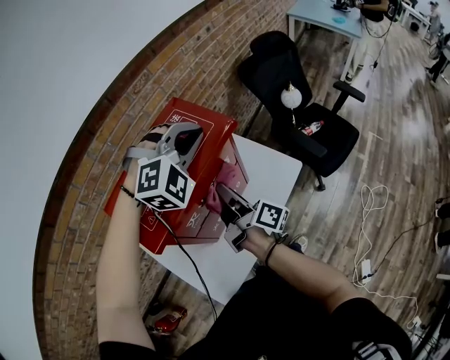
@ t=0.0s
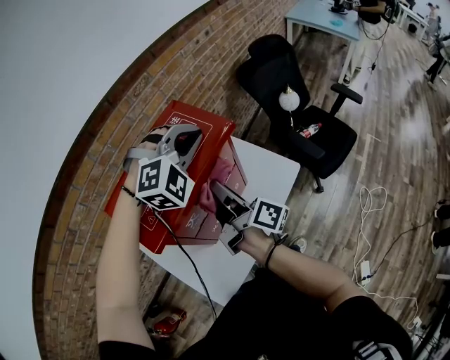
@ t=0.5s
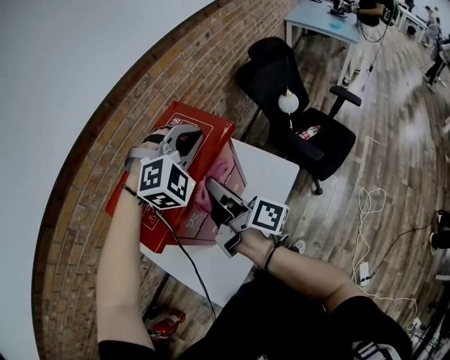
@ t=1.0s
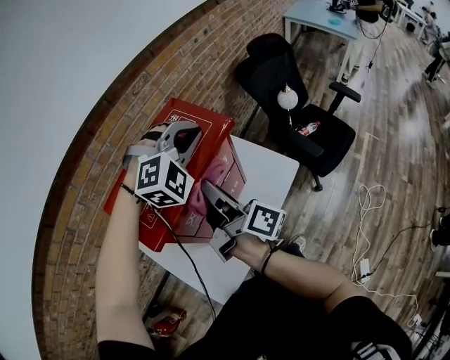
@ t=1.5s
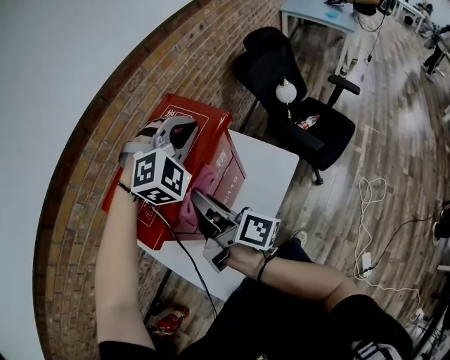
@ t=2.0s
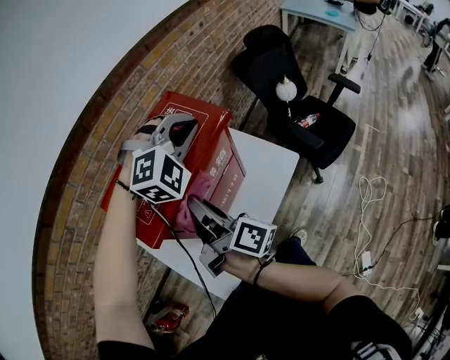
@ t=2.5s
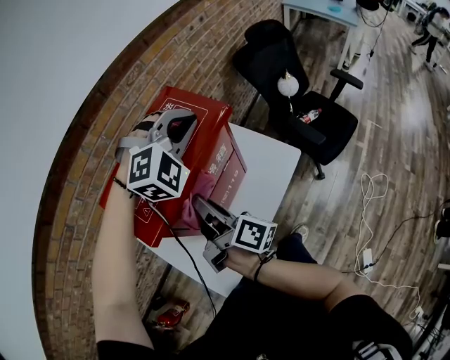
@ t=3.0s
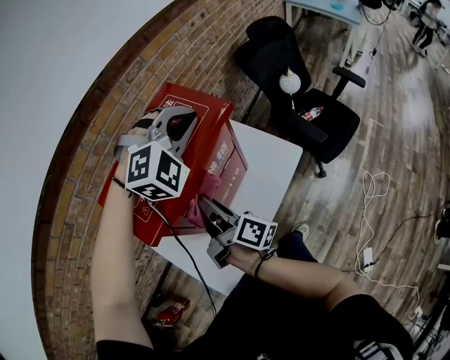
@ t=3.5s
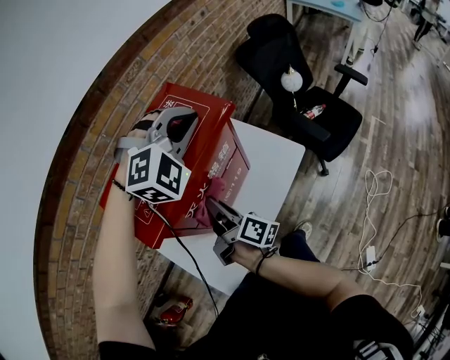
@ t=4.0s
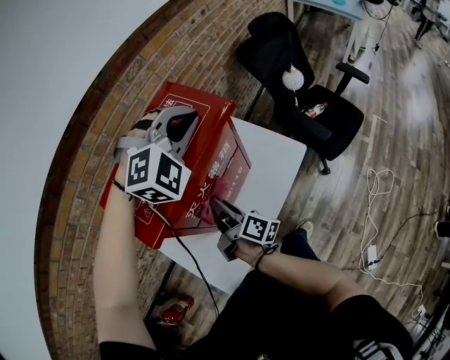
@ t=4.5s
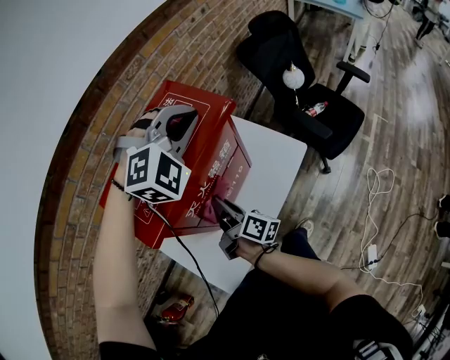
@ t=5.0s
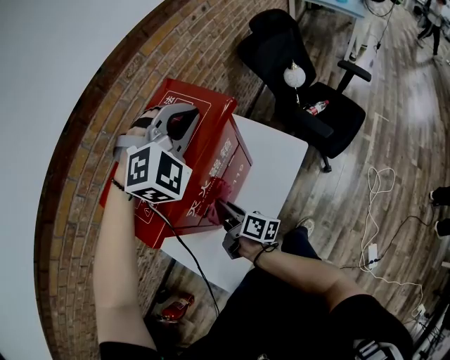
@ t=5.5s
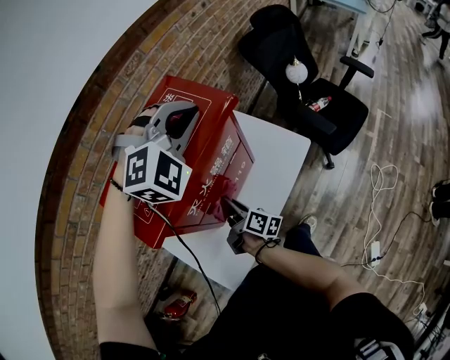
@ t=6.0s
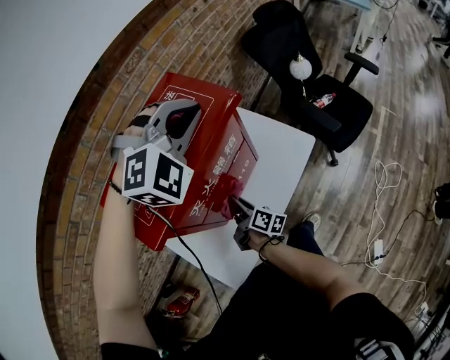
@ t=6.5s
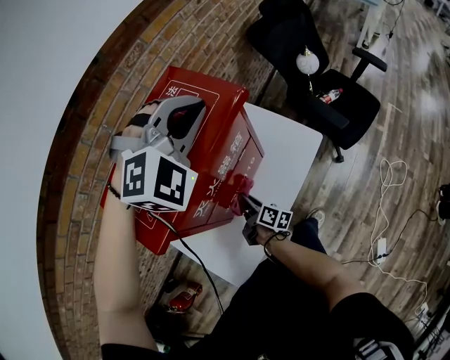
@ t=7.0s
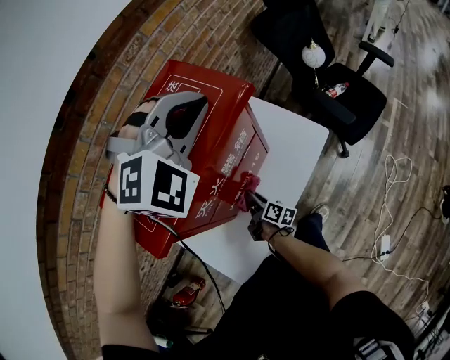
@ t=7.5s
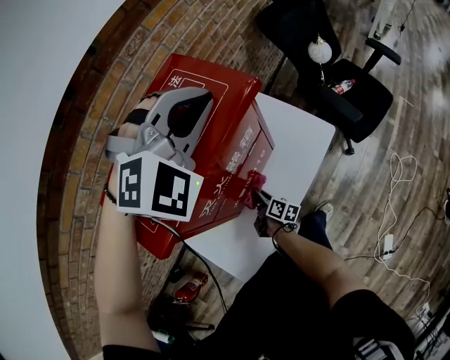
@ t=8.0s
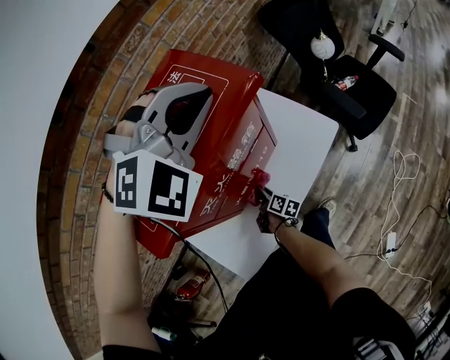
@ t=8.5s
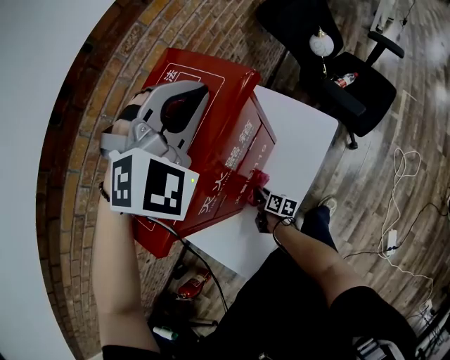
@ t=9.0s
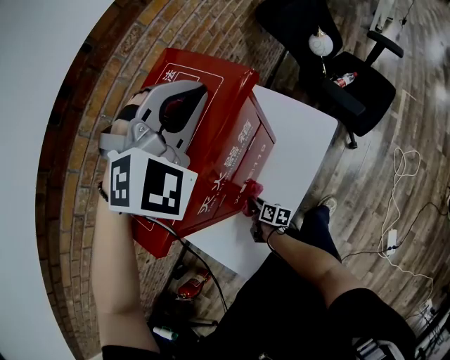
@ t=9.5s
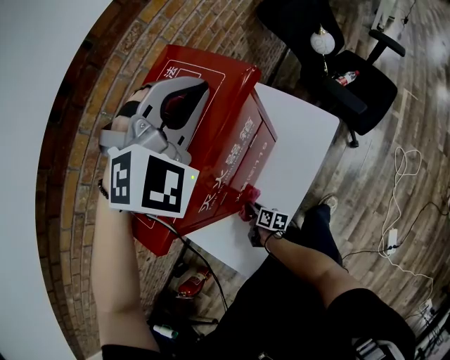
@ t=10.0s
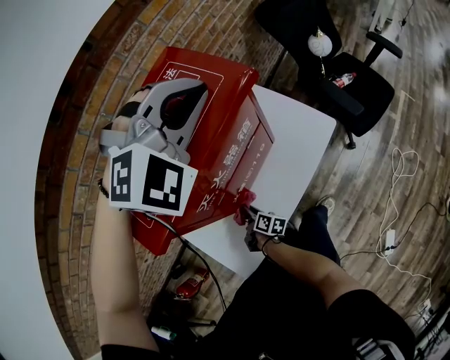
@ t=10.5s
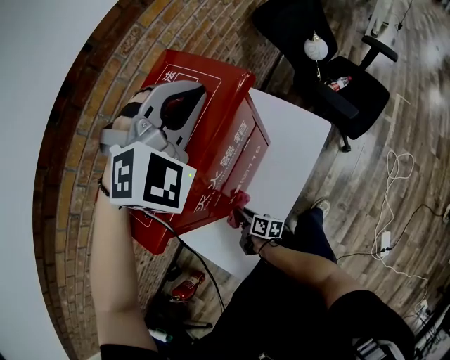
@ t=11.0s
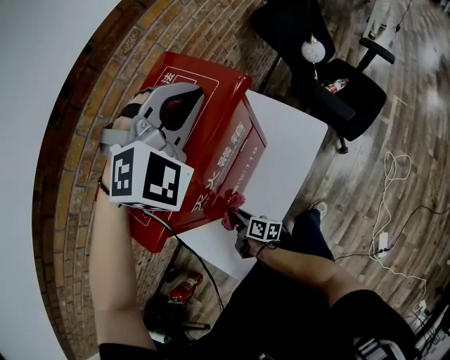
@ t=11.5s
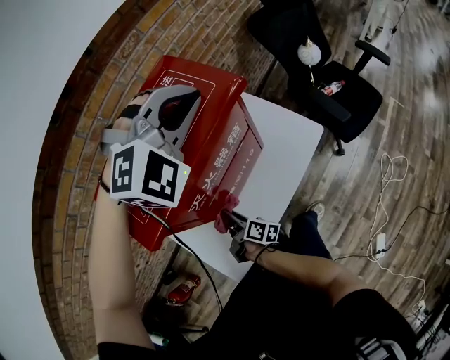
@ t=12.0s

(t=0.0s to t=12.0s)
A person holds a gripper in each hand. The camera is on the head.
t=0.0s - t=2.0s: The right gripper shifts roughly 10 cm upward.
t=2.0s - t=4.0s: The right gripper travels downward by some 15 cm.
t=4.0s - t=6.0s: The right gripper is displaced downward by roughly 10 cm.
t=6.0s - t=8.0s: The right gripper heads downward, covering about 20 cm.
t=8.0s - t=10.0s: The right gripper goes about 10 cm backward and to the left.
t=10.0s - t=12.0s: The right gripper shifts some 15 cm upward.

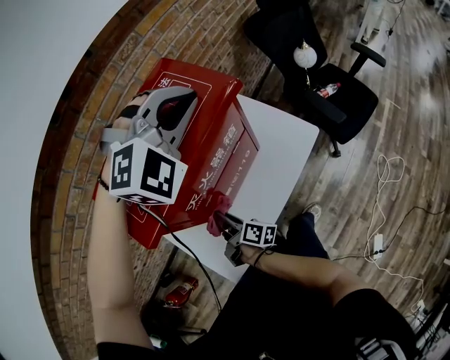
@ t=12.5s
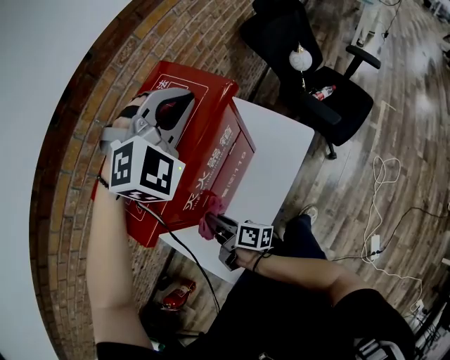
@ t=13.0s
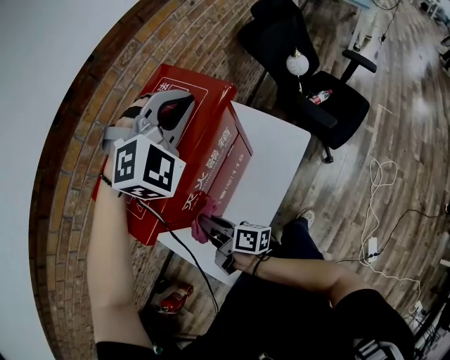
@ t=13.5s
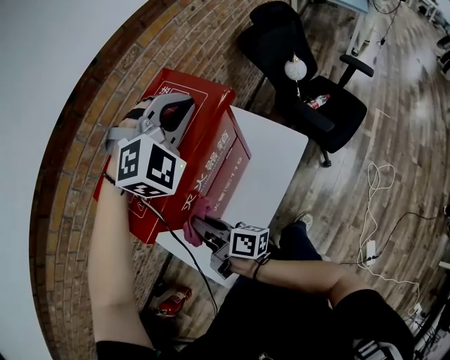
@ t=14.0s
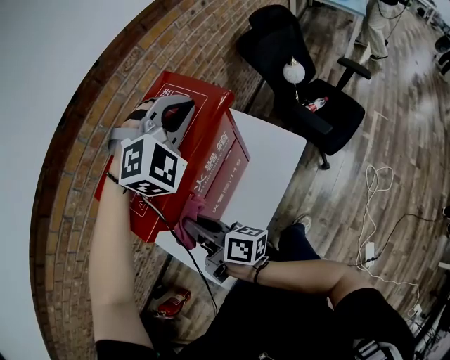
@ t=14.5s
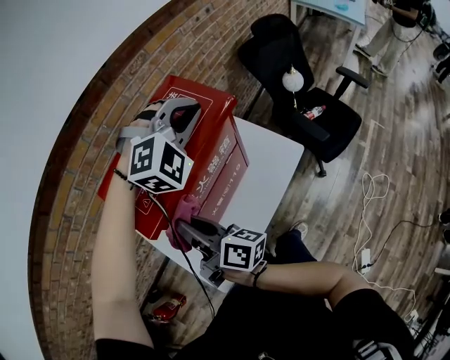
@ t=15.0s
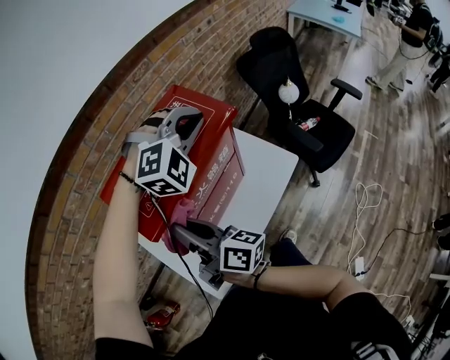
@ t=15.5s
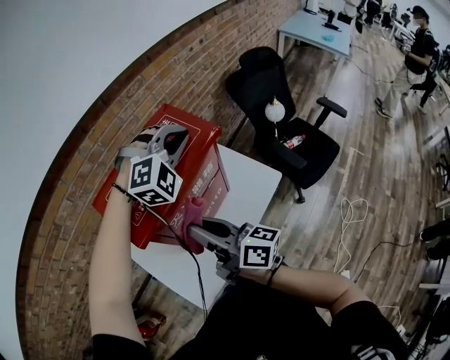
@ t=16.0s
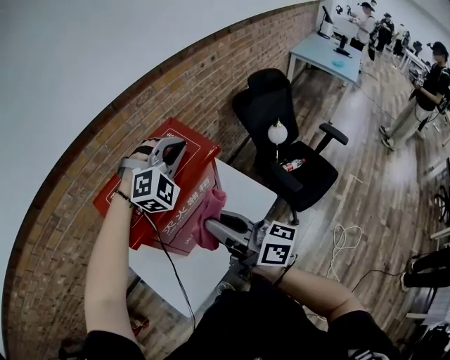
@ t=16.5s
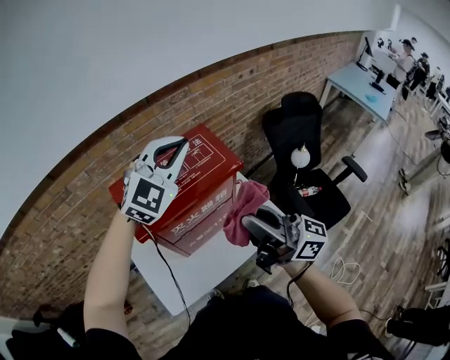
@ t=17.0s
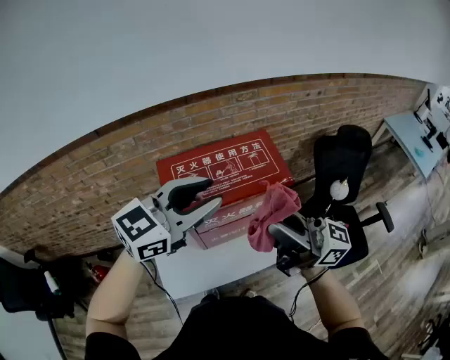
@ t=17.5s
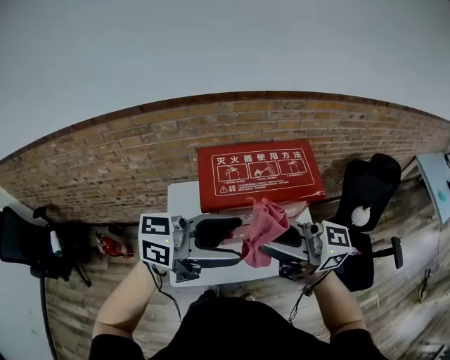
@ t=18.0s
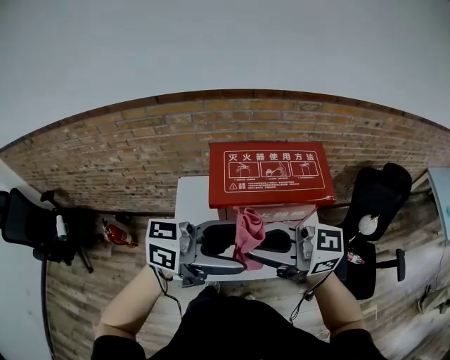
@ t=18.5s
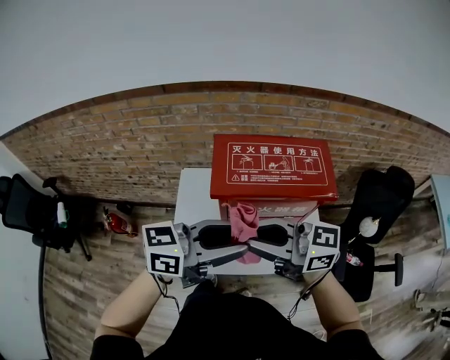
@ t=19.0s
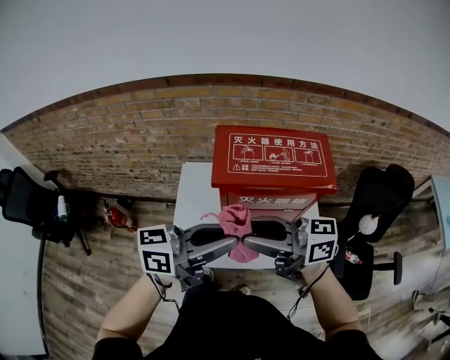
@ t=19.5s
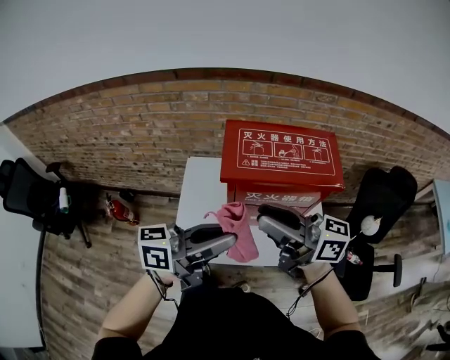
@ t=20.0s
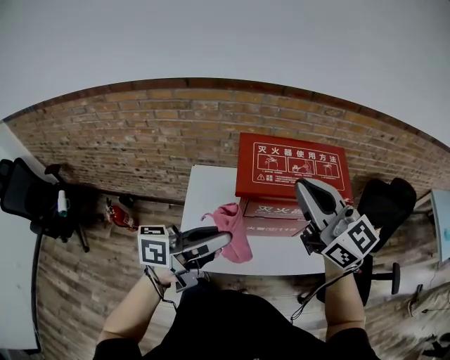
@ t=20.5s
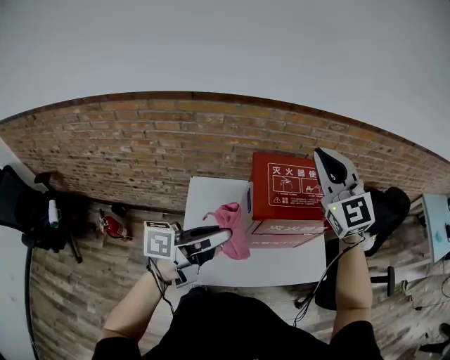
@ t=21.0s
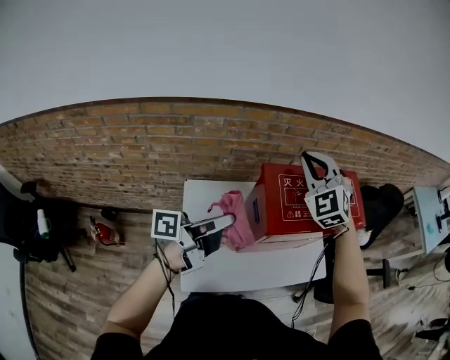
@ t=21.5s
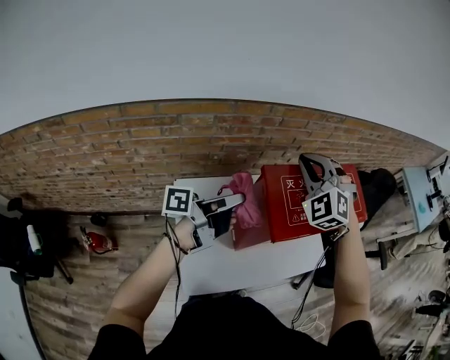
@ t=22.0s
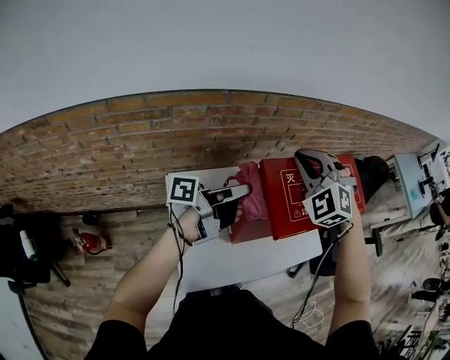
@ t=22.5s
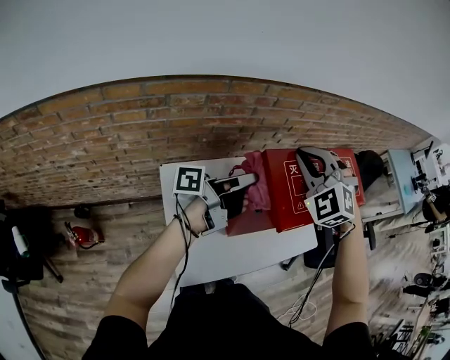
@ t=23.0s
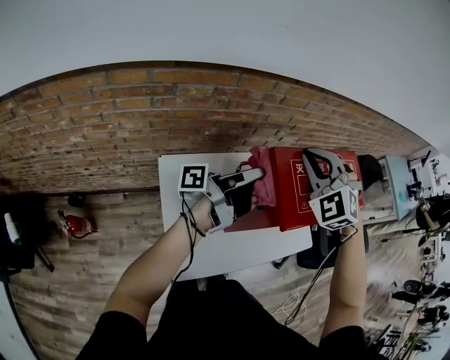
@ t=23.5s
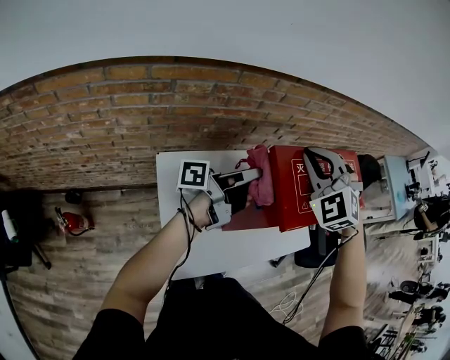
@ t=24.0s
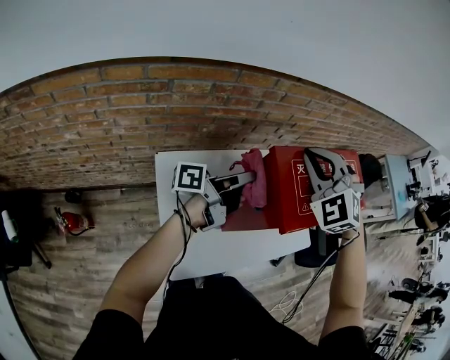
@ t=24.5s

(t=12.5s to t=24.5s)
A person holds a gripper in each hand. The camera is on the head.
t=12.5s - t=14.5s: The right gripper moves upward, approximately 20 cm, and turns by approximately 20 degrees.
t=14.5s - t=16.5s: The right gripper travels to the right and upward by some 20 cm, and rotates approximately 30 degrees.
t=16.5s - t=18.5s: The right gripper moves some 15 cm, and turns by some 70 degrees, while the left gripper ends up about 25 cm from where it was, rolls counterclockwise, seen from behind, by approximately 100 degrees, and opens.
t=18.5s - t=20.5s: The left gripper ends up about 10 cm from where it was, changes its angle by approximately 30 degrees, and closes. The right gripper moves about 10 cm, and changes its angle by approximately 40 degrees.
t=20.5s - t=22.5s: The right gripper shifts by approximately 25 cm, and tilts its fingers approximately 40 degrees downward. Meanwhile the left gripper ends up roughly 25 cm from where it was, and turns by roughly 40 degrees.
t=22.5s - t=24.5s: The grippers make only small movements.

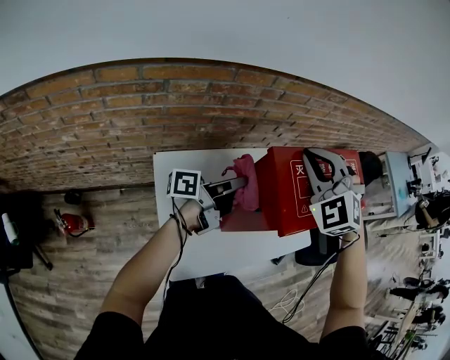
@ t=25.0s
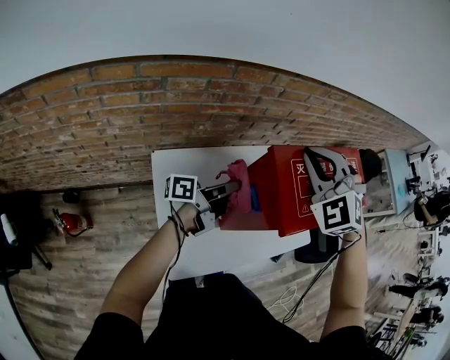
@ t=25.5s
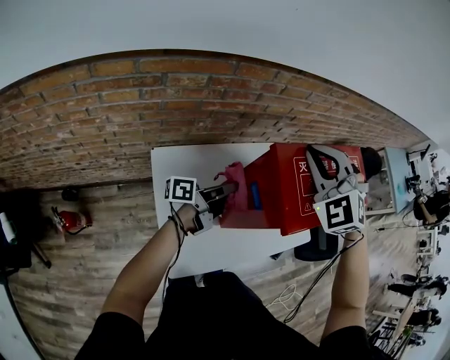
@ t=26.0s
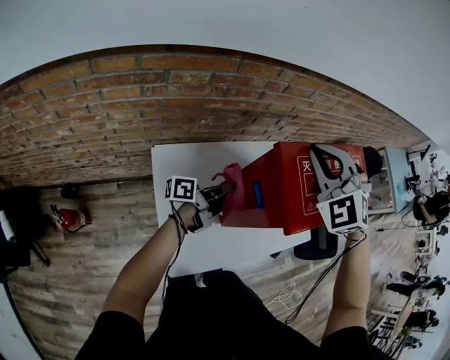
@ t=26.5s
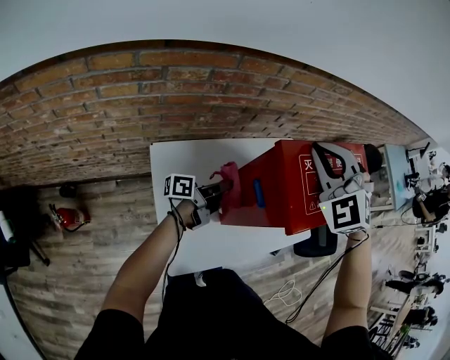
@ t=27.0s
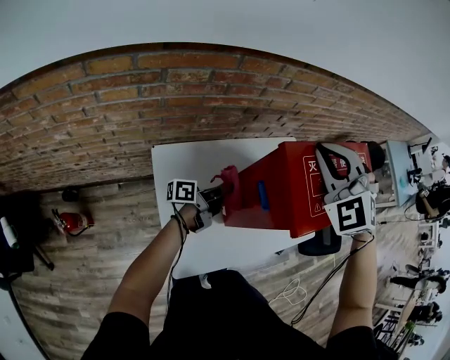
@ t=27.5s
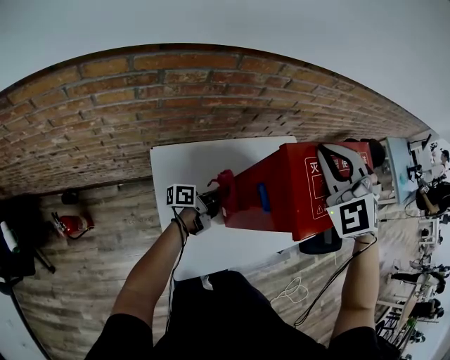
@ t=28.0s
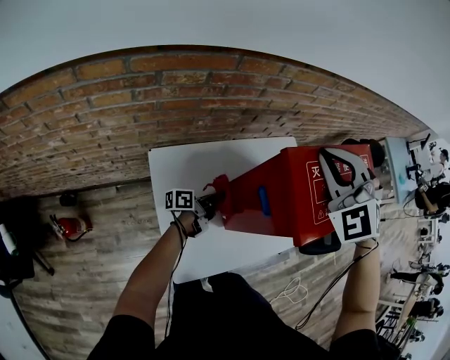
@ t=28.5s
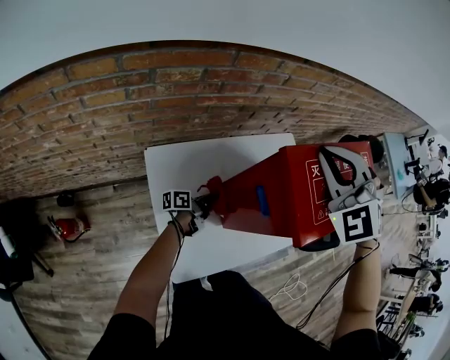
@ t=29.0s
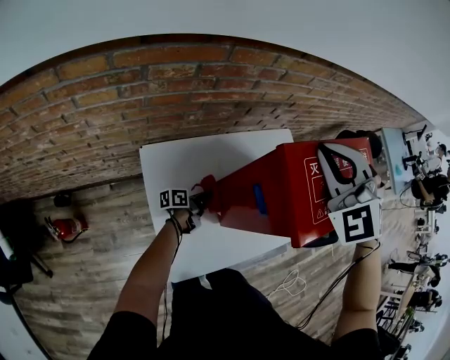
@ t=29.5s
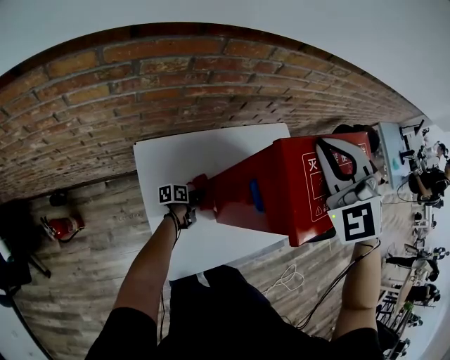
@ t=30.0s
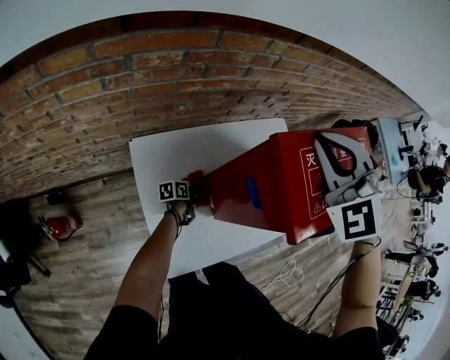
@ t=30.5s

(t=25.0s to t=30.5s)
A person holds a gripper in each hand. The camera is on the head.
t=25.0s - t=27.0s: The left gripper is displaced downward by approximately 15 cm.
t=27.0s - t=28.5s: The left gripper is displaced downward by roughly 10 cm.
t=28.5s - t=30.5s: The left gripper travels downward by some 15 cm, and rotates about 30 degrees.
